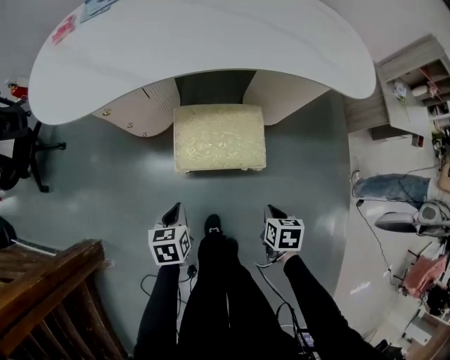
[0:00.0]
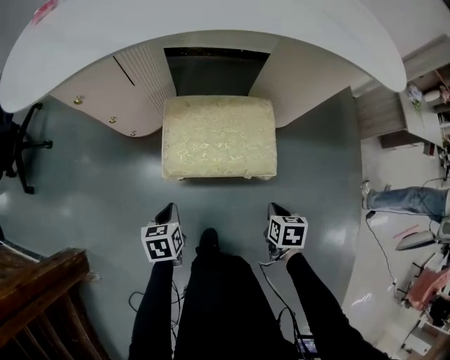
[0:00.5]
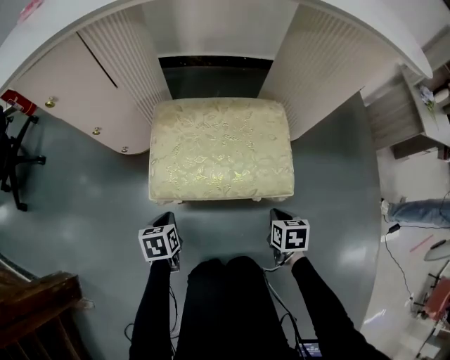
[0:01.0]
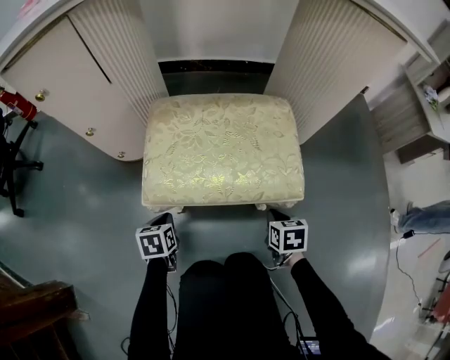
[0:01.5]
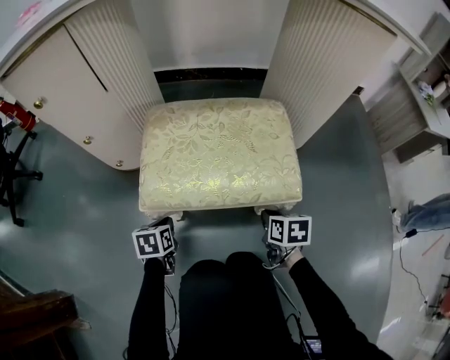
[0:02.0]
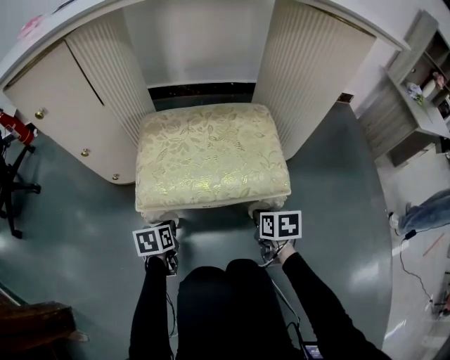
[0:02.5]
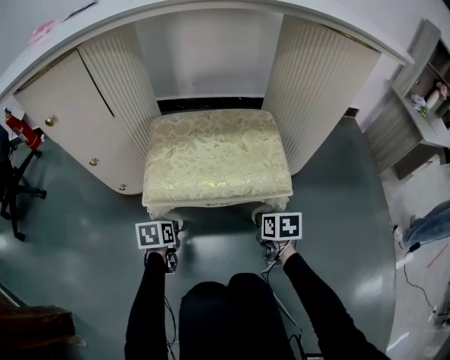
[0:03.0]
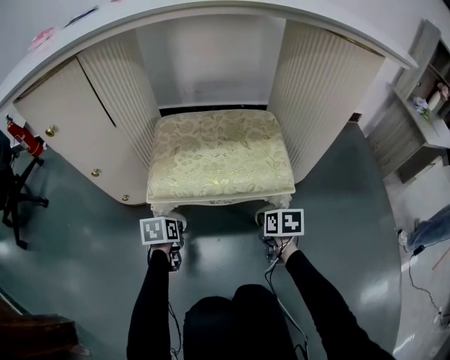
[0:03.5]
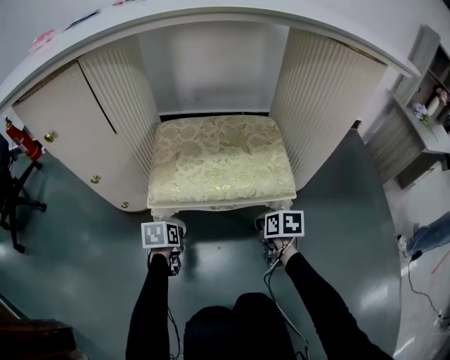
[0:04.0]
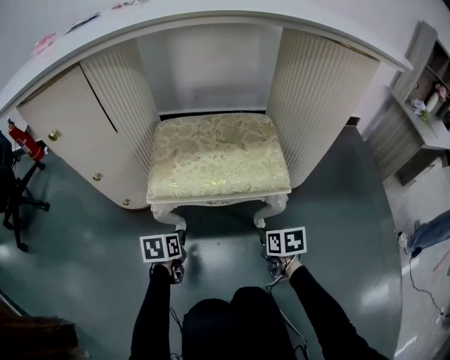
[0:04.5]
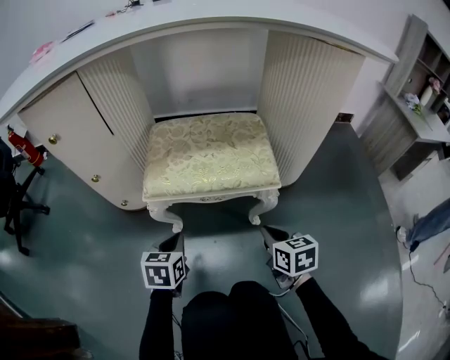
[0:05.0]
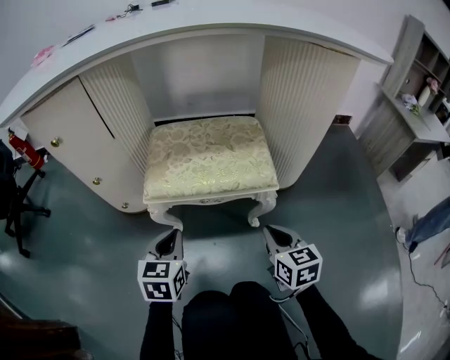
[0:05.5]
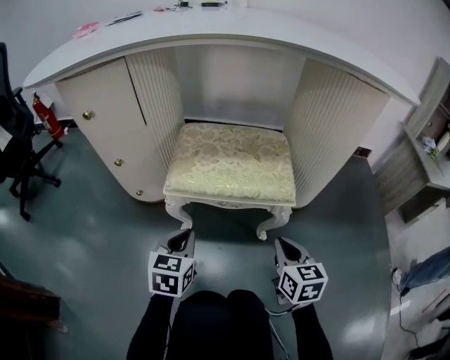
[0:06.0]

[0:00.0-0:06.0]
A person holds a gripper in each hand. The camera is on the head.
0:00.0 to 0:02.0: Both grippers travel together downward, approximately 40 cm.
0:02.0 to 0:04.0: The grippers move only a little.
0:04.0 to 0:06.0: The grippers both shift upward and backward by about 20 cm. The left gripper swivels about 30 degrees. Meanwhile the right gripper turns by some 40 degrees.

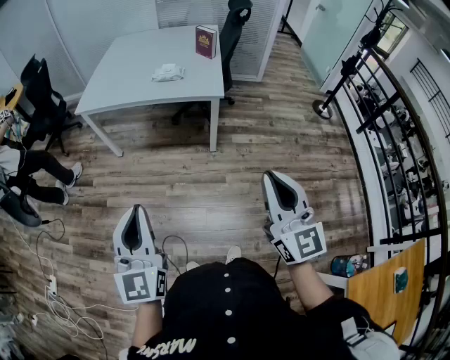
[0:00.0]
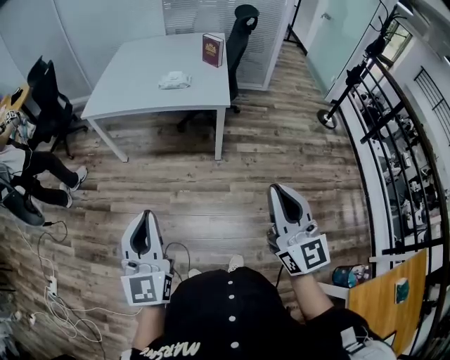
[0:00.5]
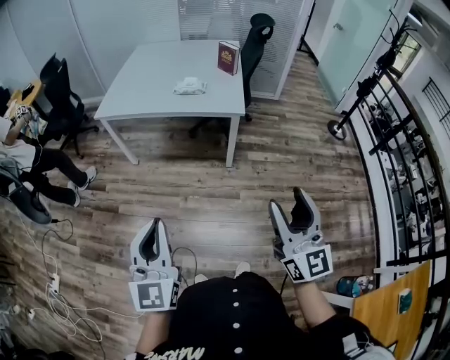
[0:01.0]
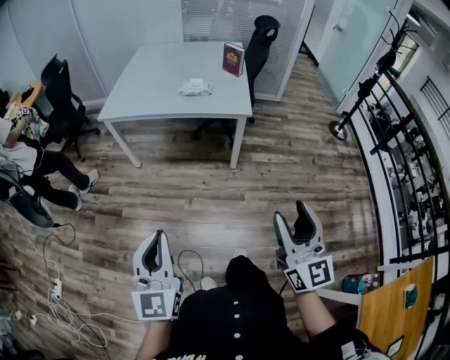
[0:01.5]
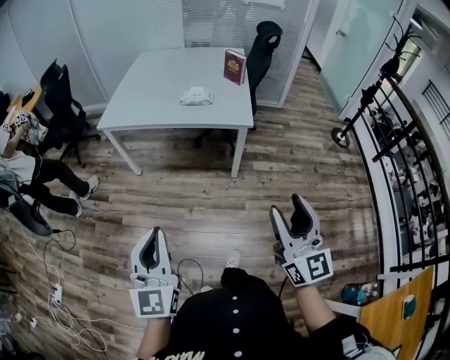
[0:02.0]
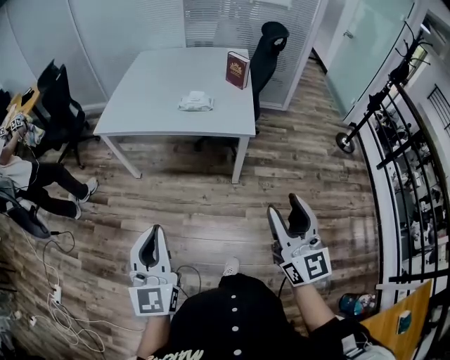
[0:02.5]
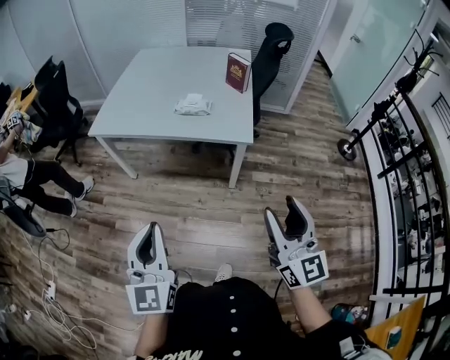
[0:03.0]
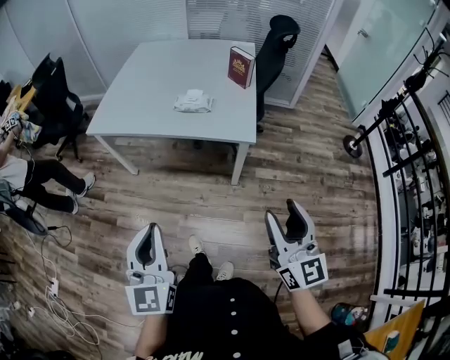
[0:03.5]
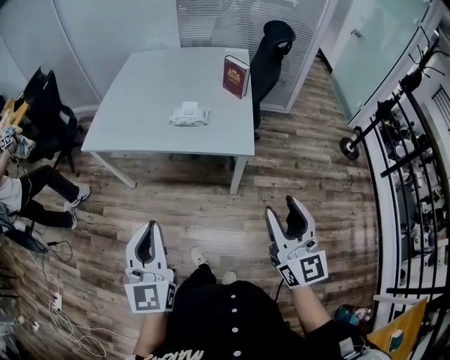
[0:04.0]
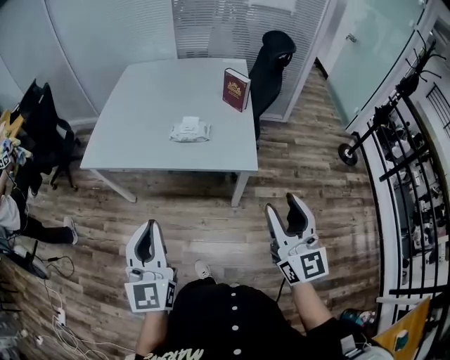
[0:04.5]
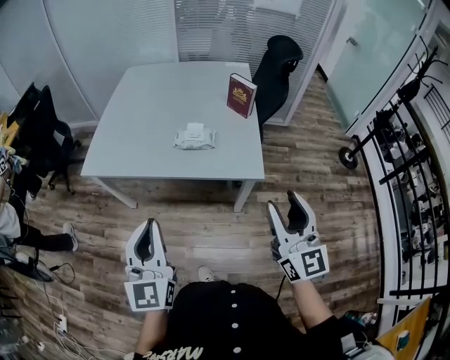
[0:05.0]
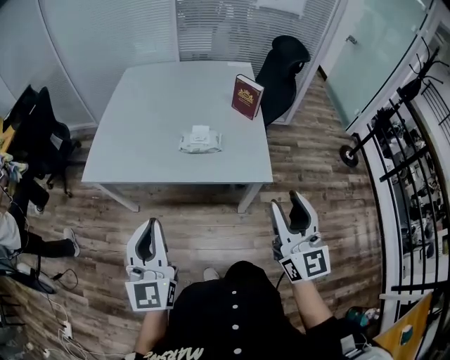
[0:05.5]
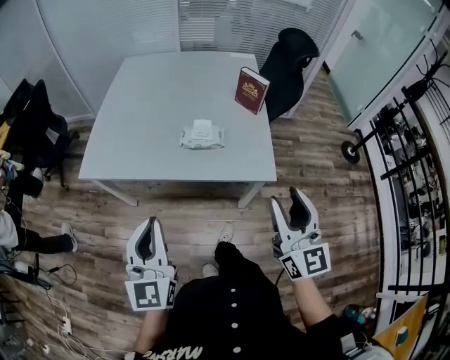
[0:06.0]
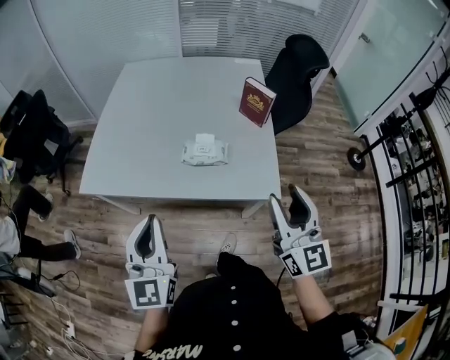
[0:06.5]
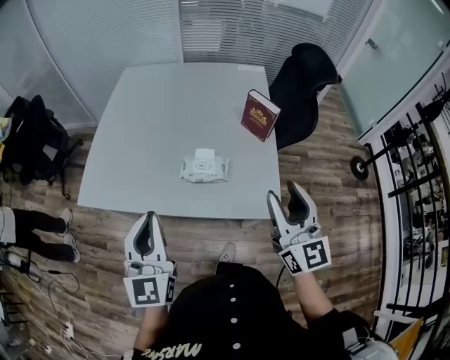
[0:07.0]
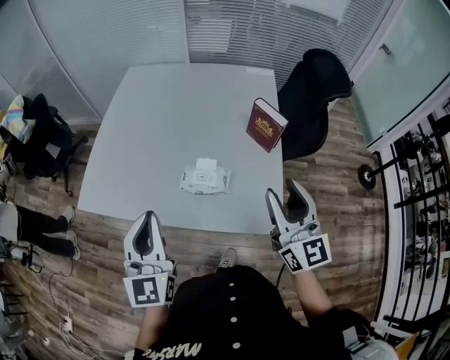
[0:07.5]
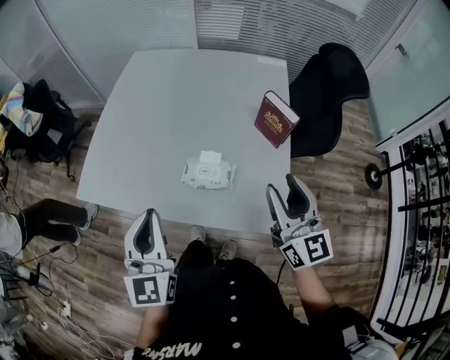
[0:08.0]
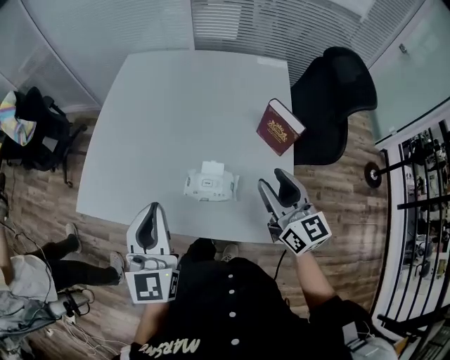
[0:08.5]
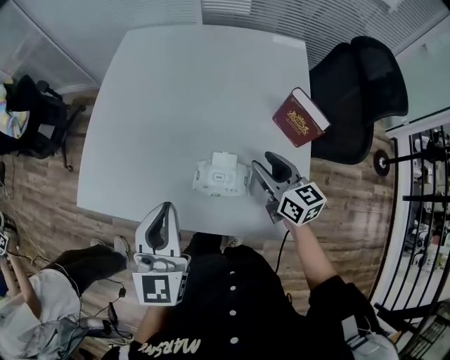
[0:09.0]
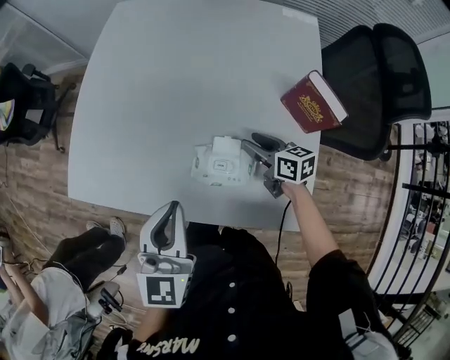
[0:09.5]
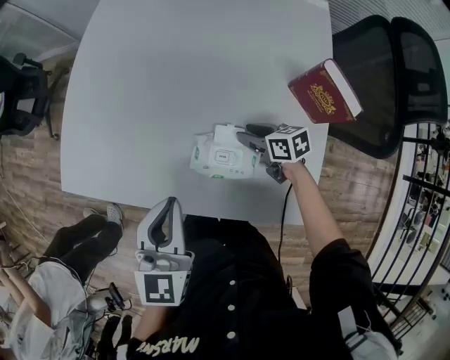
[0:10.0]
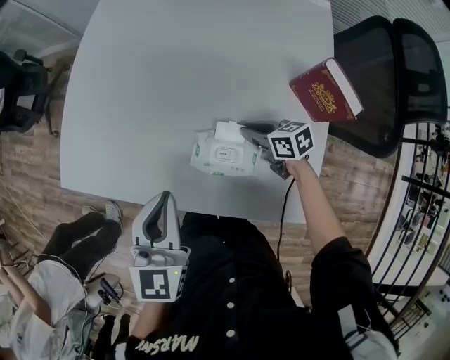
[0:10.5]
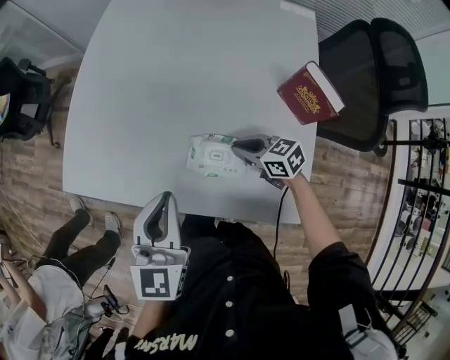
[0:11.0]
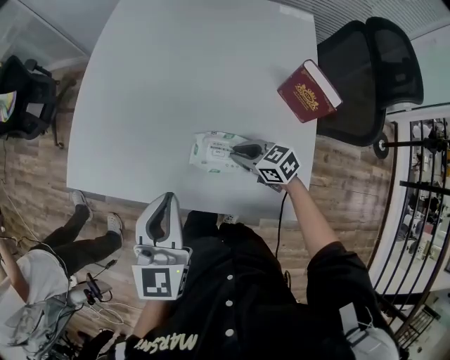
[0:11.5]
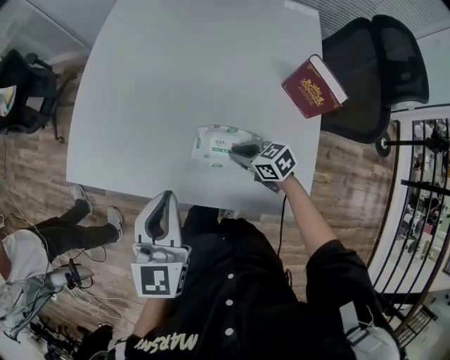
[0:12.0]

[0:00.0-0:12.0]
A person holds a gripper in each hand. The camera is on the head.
0:00.0 to 0:02.0: The left gripper moves to the left and forward, roughly 5 cm. The right gripper goes about 5 cm forward, and opens up.
0:02.0 to 0:04.0: The two grippers go some 20 cm forward.
0:04.0 to 0:06.0: Both grippers move forward and to the left, some 20 cm.
0:06.0 to 0:08.0: The grippers both shift forward by about 25 cm.
0:08.0 to 0:10.0: The right gripper travels downward and forward by some 40 cm, and tips its fingers downward by about 40 degrees. Meanwhile the left gripper travels downward and forward by some 15 cm, and swivels roughly 20 degrees.
0:10.0 to 0:12.0: The right gripper heads to the left and backward, covering some 10 cm, swivels roughly 20 degrees, and closes up, while the left gripper shifts by about 5 cm.

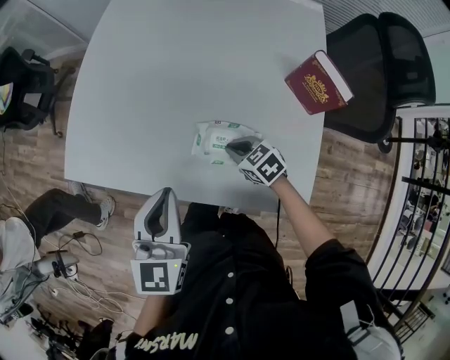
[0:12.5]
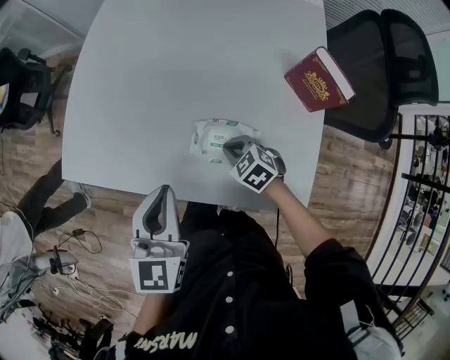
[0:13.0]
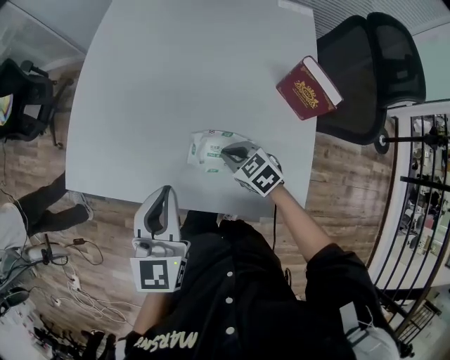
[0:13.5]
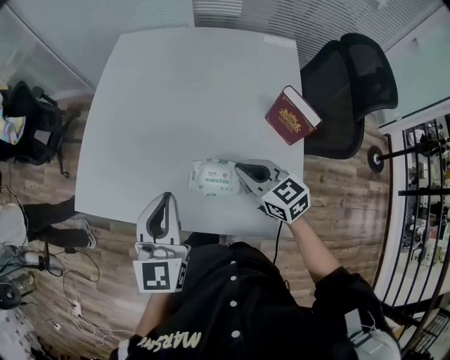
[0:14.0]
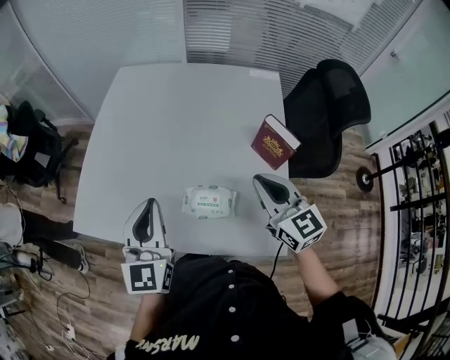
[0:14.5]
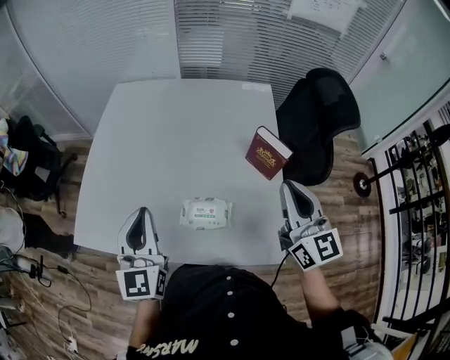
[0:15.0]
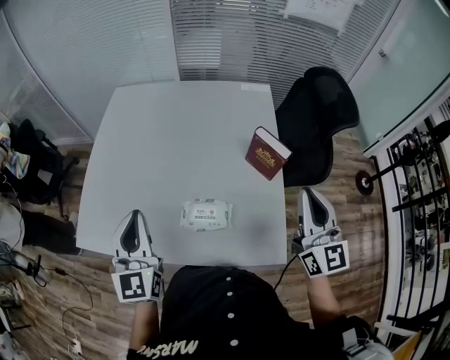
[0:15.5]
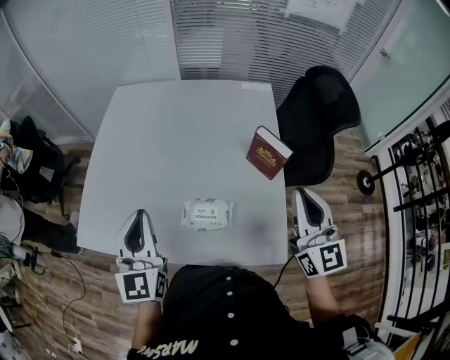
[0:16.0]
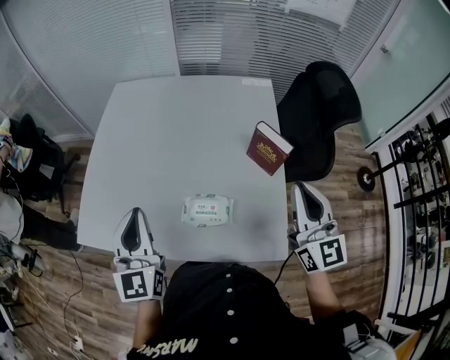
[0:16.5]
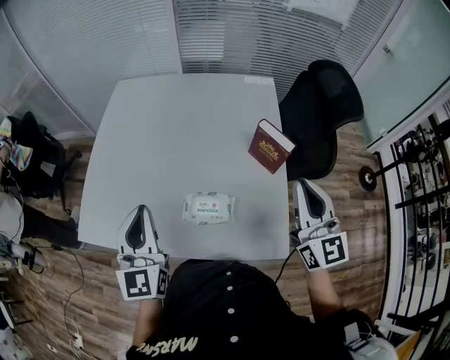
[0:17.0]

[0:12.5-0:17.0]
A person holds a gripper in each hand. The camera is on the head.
0:12.5 to 0:14.5: The left gripper goes some 10 cm upward; the right gripper is displaced upward by approximately 30 cm, and angles its fingers upward, by approximately 40 degrees.
0:14.5 to 0:17.0: The right gripper shifts some 10 cm to the right and upward, and turns by roughly 30 degrees.

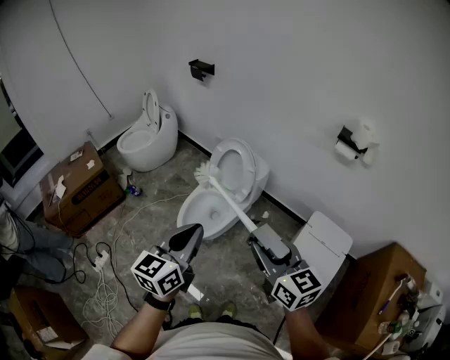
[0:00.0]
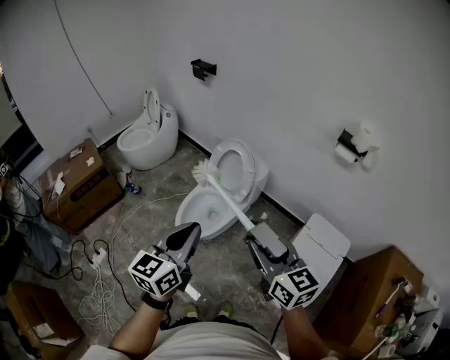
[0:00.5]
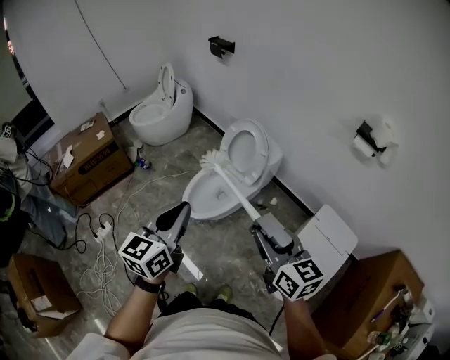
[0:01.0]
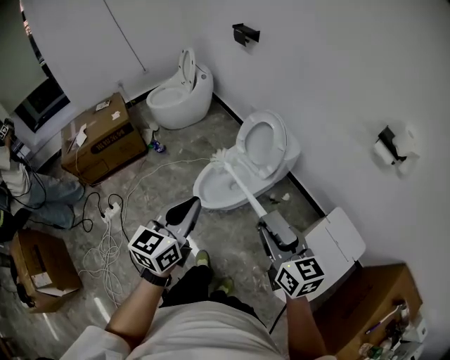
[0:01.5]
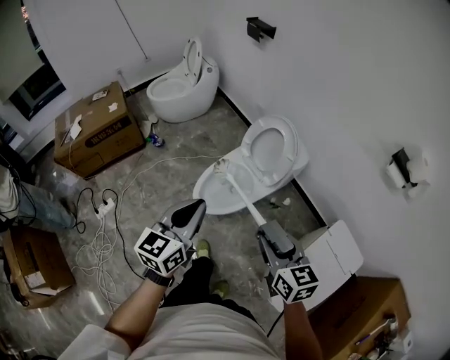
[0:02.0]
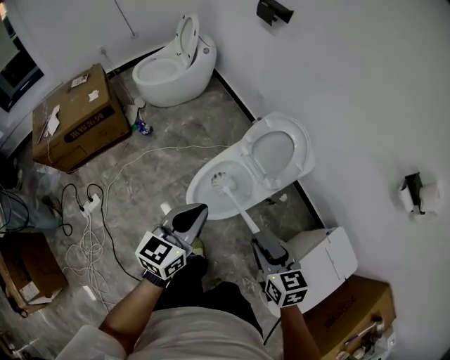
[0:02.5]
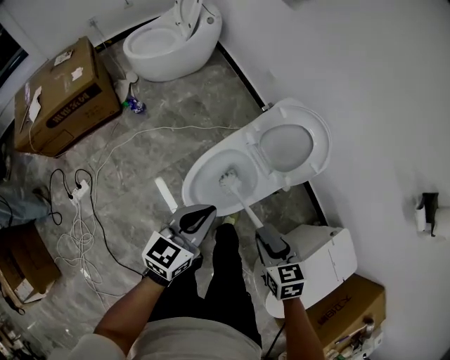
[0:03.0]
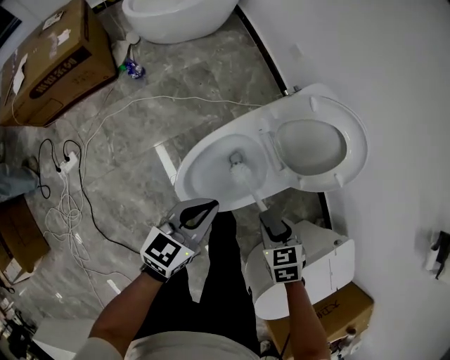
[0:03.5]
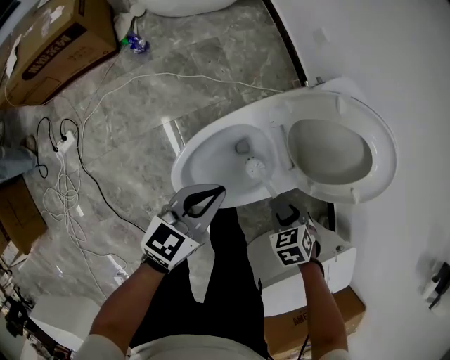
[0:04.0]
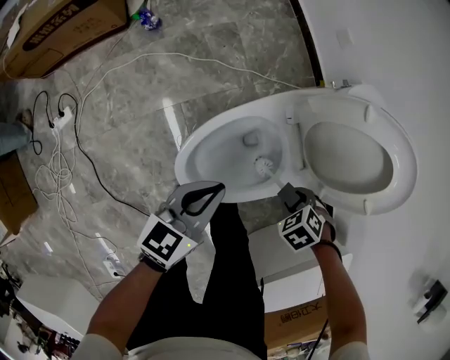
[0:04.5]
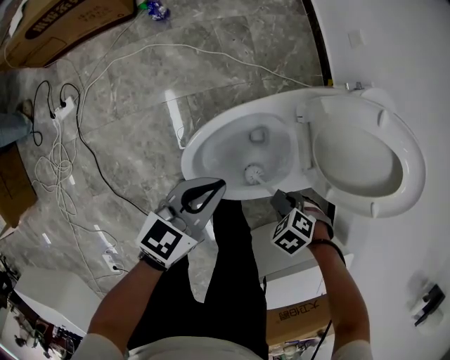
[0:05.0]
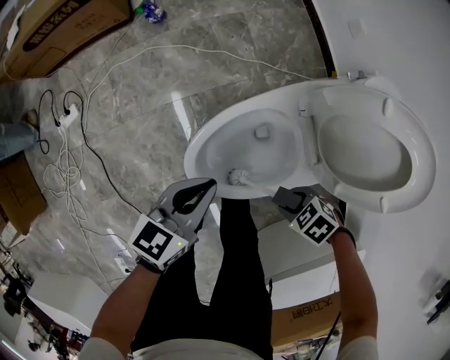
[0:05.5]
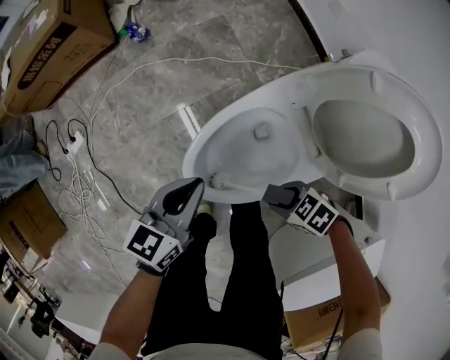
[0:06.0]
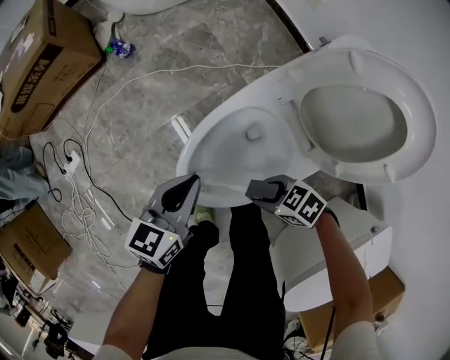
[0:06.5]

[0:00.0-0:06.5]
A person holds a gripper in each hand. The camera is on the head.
0:00.0 to 0:02.0: The right gripper goes roughly 15 cm downward and forward. The left gripper heads forward, downward and to the left, covering about 15 cm.
0:02.0 to 0:04.5: The two grippers go some 50 cm downward. The right gripper tips its fingers downward by some 70 degrees.
0:04.5 to 0:06.5: The right gripper changes place by roughly 15 cm, and points its fingers approximately 40 degrees further upward; the left gripper shifts roughly 5 cm downward.
